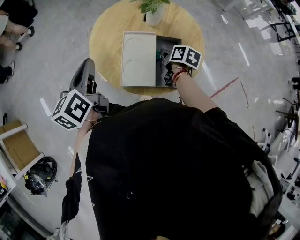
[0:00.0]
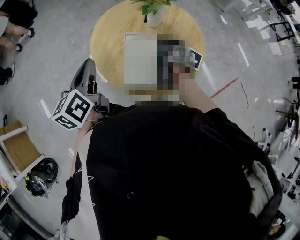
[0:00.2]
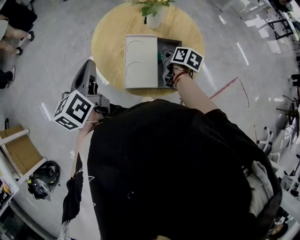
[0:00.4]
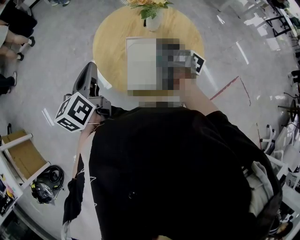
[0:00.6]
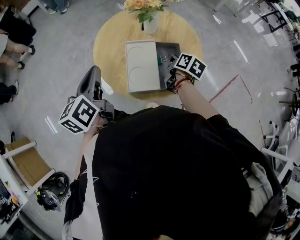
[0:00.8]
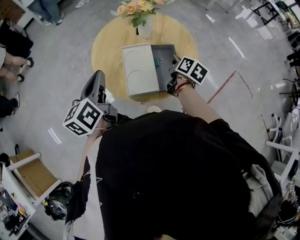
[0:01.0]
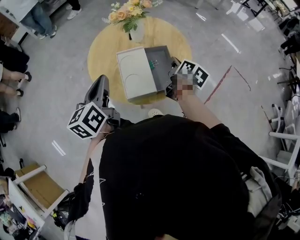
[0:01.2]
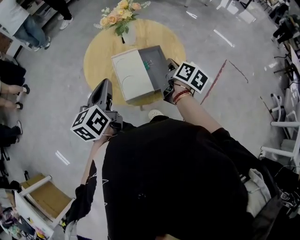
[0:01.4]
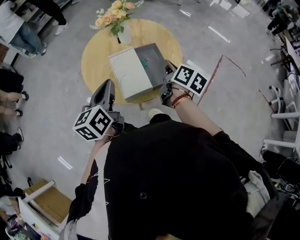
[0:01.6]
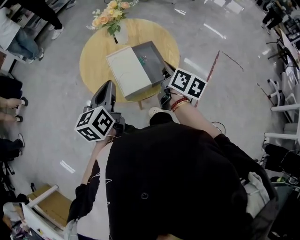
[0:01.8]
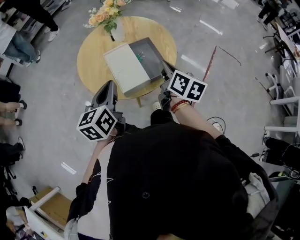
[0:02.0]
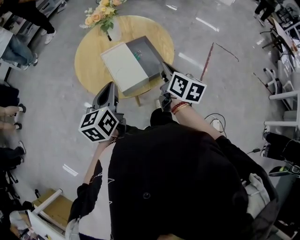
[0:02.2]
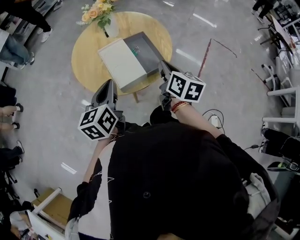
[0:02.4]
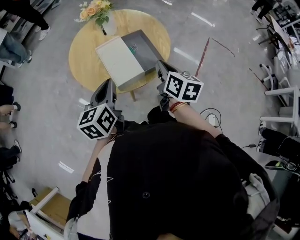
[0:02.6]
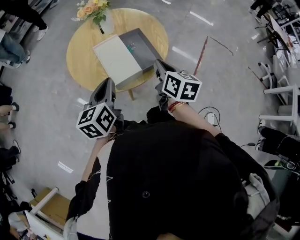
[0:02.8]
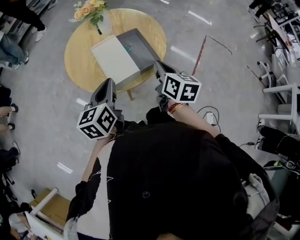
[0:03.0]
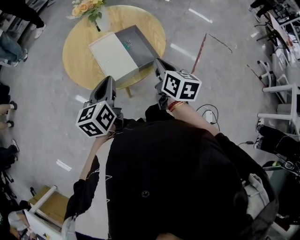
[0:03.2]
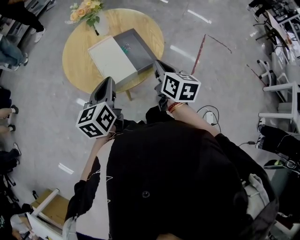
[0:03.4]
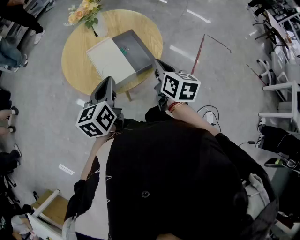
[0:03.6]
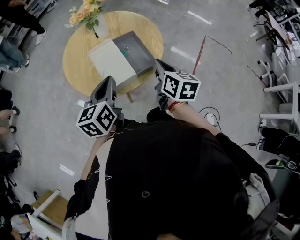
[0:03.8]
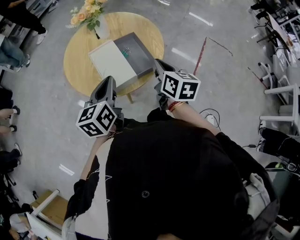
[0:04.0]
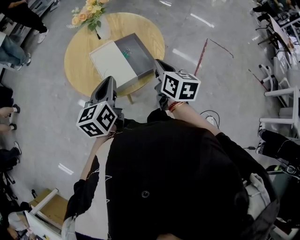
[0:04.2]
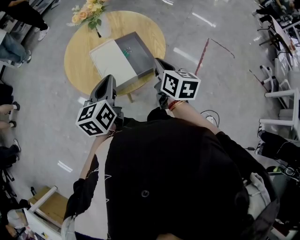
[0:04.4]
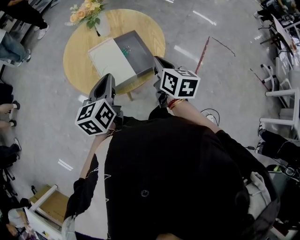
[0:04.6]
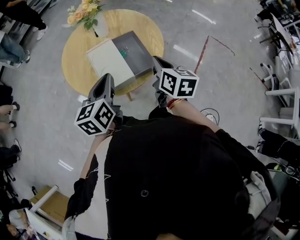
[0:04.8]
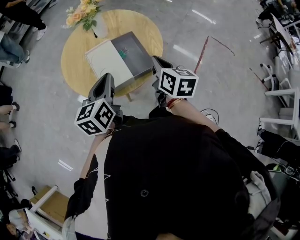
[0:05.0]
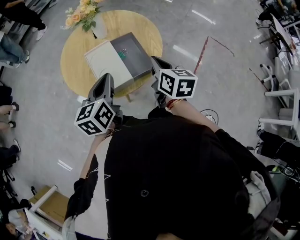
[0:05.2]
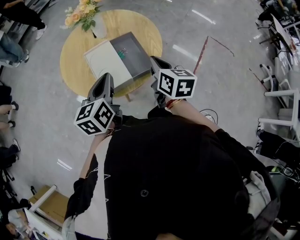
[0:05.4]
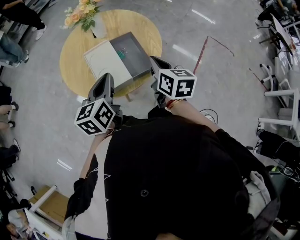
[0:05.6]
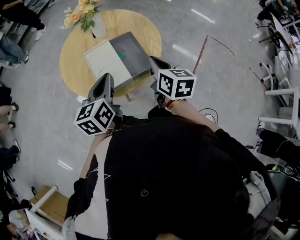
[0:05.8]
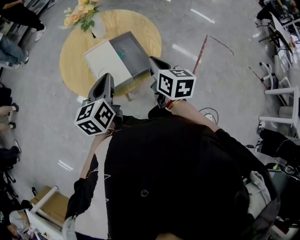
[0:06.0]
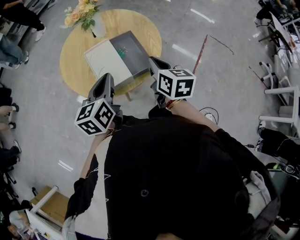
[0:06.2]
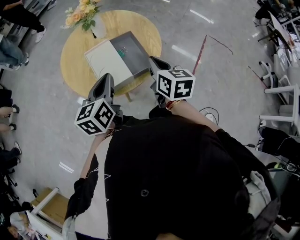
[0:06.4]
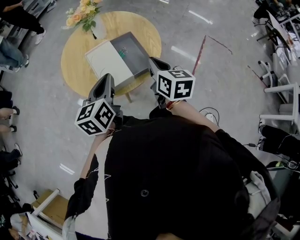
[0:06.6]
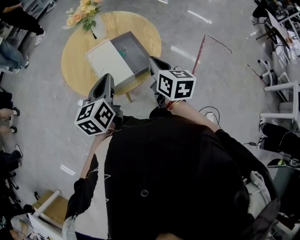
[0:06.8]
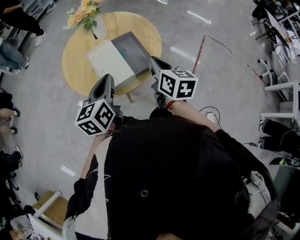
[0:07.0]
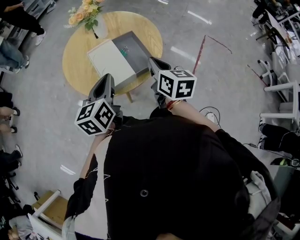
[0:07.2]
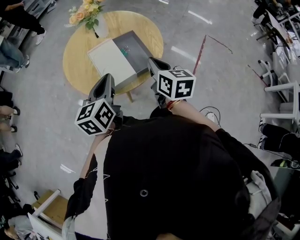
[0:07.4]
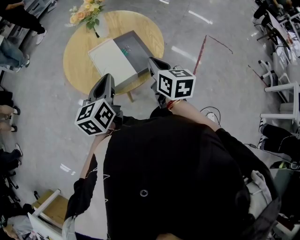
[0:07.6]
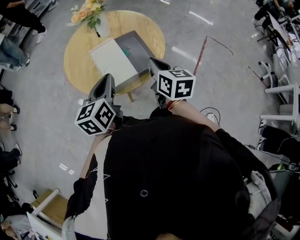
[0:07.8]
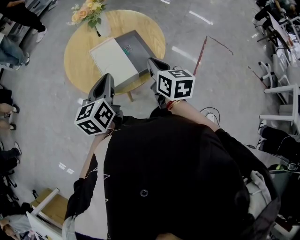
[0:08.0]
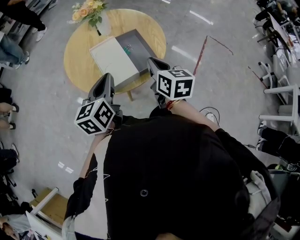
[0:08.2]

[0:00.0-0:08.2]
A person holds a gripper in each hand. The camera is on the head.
0:00.0 to 0:01.6: The right gripper is displaced upward by some 15 cm, and turns by roughly 40 degrees; the left gripper changes place by about 10 cm, and turns by approximately 30 degrees.
0:01.6 to 0:03.2: The right gripper goes approximately 10 cm backward, and swivels approximately 20 degrees. Meanwhile the left gripper goes some 5 cm to the right.
0:03.2 to 0:05.0: The left gripper moves approximately 5 cm.
0:05.0 to 0:08.2: The grippers move only a little.

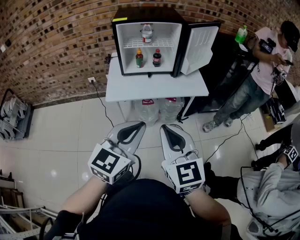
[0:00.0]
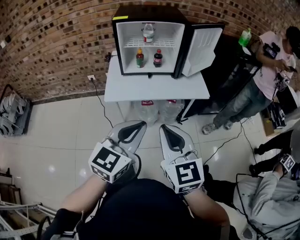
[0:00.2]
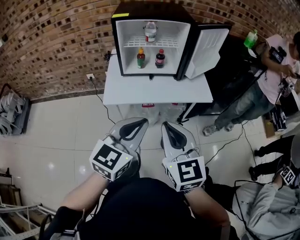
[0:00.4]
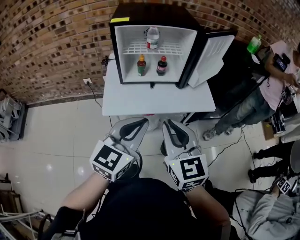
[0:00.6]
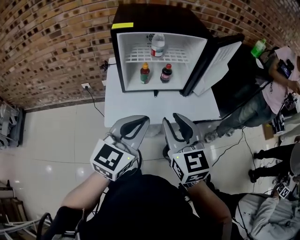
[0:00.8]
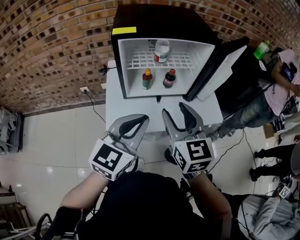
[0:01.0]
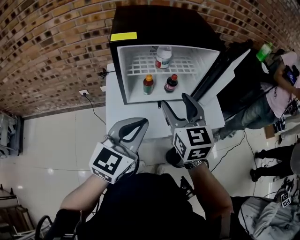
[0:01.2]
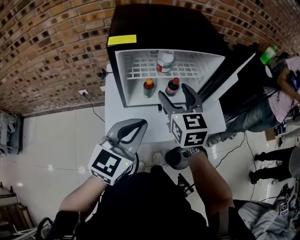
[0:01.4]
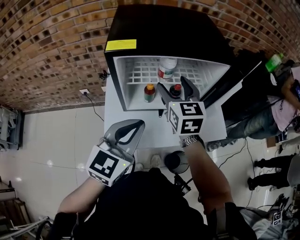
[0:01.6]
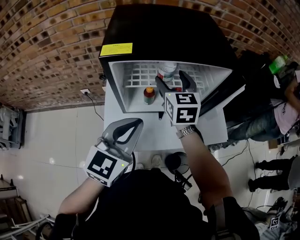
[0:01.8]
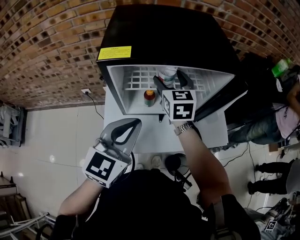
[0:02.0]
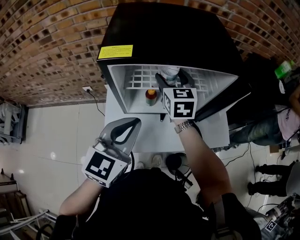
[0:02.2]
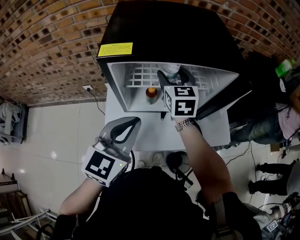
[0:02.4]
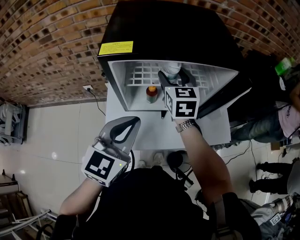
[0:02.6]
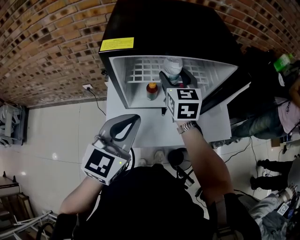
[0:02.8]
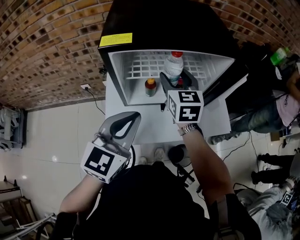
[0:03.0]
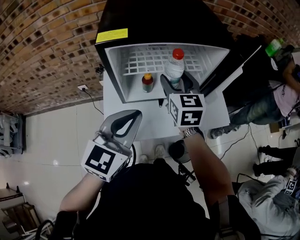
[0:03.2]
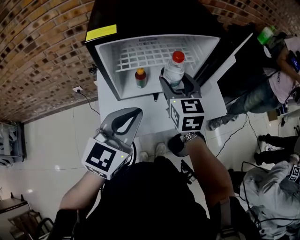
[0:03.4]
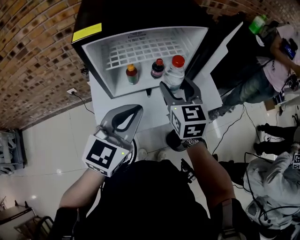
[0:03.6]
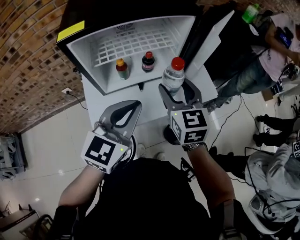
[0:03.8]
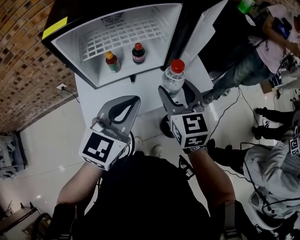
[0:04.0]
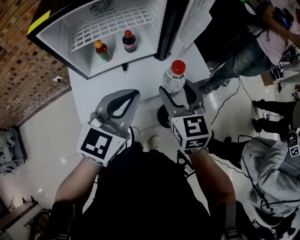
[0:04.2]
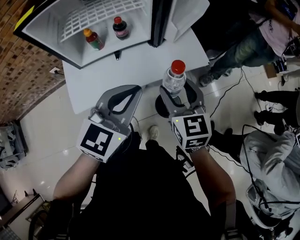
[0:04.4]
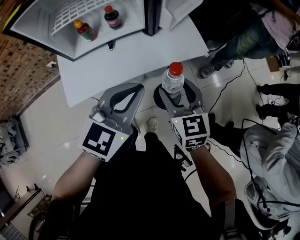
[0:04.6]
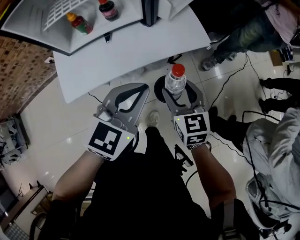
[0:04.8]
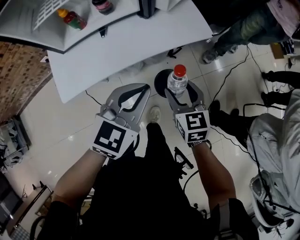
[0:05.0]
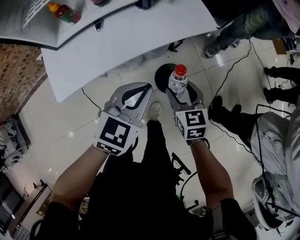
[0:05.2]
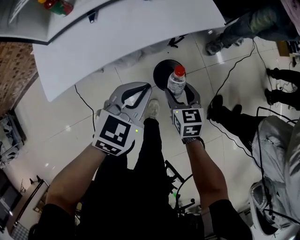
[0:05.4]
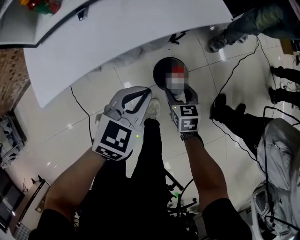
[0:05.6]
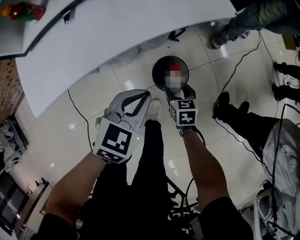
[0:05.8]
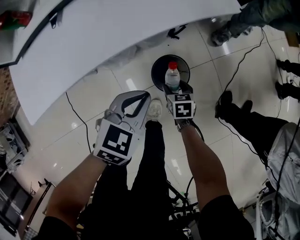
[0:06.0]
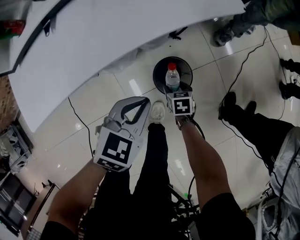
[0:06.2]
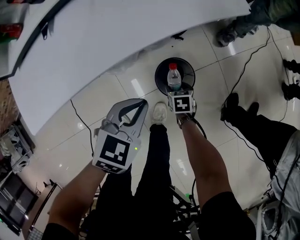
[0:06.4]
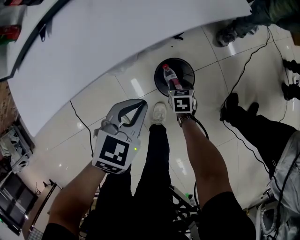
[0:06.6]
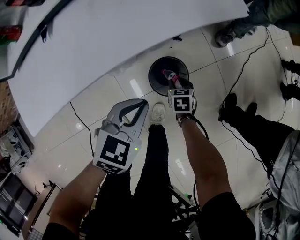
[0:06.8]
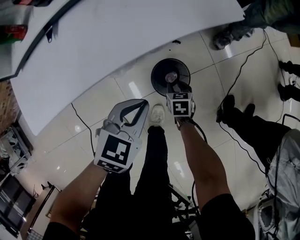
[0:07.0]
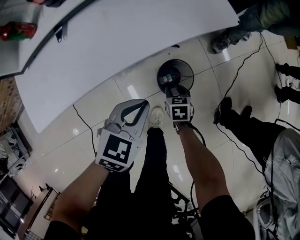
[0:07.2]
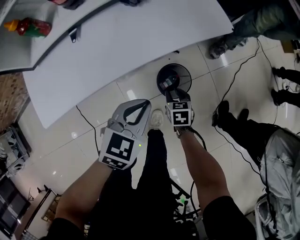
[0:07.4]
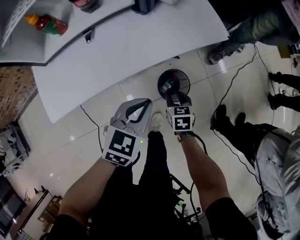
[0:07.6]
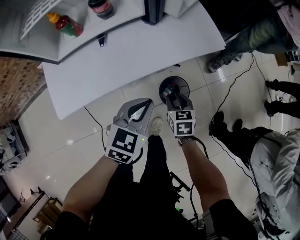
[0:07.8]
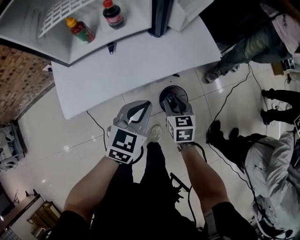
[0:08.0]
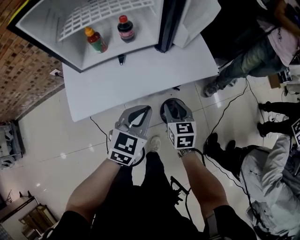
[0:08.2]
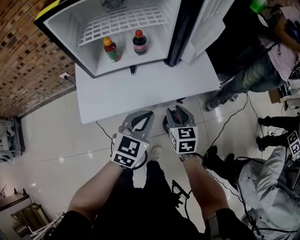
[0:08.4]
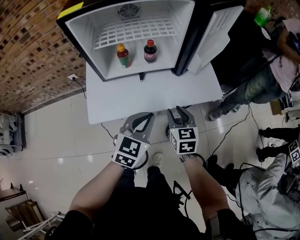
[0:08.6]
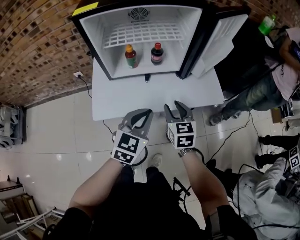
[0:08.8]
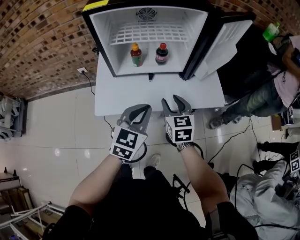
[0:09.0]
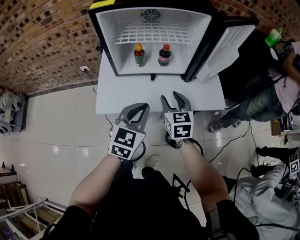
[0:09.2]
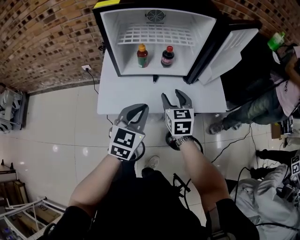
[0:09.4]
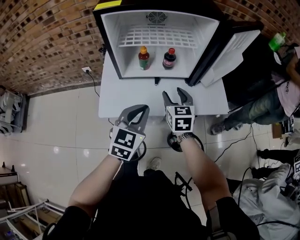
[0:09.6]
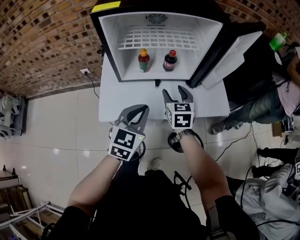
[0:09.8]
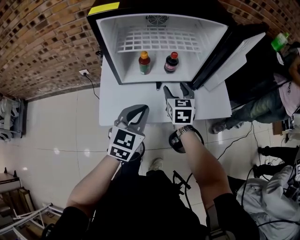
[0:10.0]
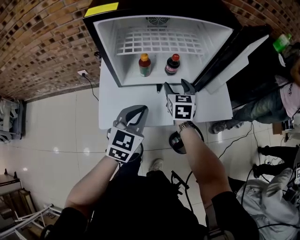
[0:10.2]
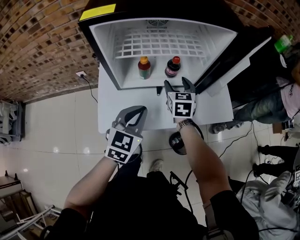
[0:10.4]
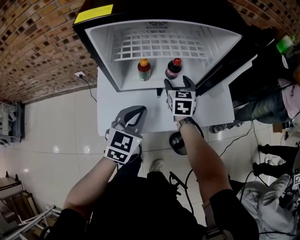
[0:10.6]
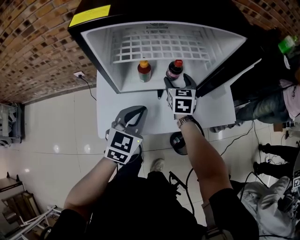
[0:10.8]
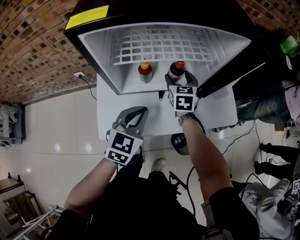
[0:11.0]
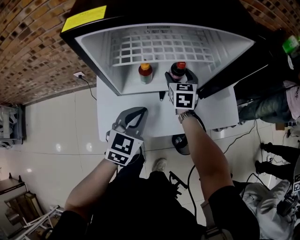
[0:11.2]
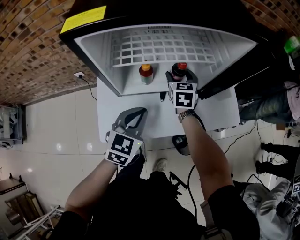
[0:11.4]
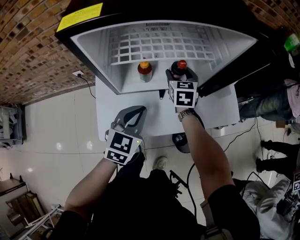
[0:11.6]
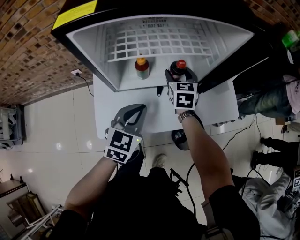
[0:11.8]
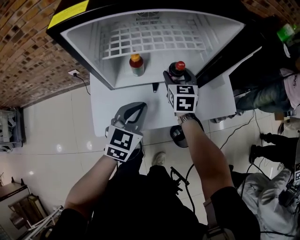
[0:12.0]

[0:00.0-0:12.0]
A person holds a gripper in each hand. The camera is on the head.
0:00.0 to 0:01.6: Both grippers are carried forward, about 50 cm. The right gripper opens.
0:03.0 to 0:04.4: The left gripper shifts approximately 20 cm to the right. Meanwhile the right gripper moves to the right and backward, about 35 cm.
0:04.4 to 0:06.0: The grippers both shift downward by some 40 cm. The left gripper swivels approximately 30 degrees. Meanwhile the right gripper angles its fingers downward, by roughly 40 degrees.
0:06.0 to 0:07.6: The two grippers go approximately 10 cm upward. The right gripper closes its fingers.
0:07.6 to 0:09.0: The right gripper travels upward and to the left by roughly 35 cm, and turns by about 40 degrees. The left gripper moves upward and to the left, roughly 25 cm, and swivels about 30 degrees.
0:09.0 to 0:10.4: The right gripper shifts about 20 cm forward. The left gripper travels forward and to the left by roughly 10 cm.

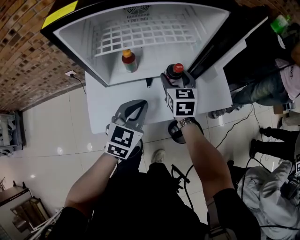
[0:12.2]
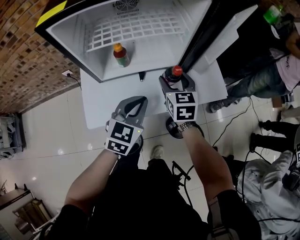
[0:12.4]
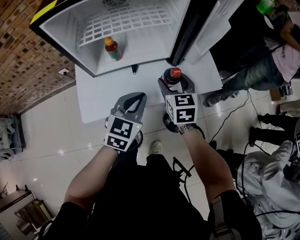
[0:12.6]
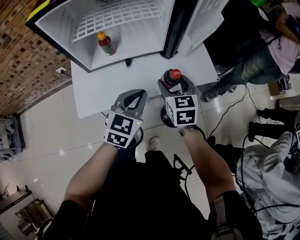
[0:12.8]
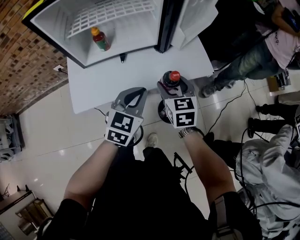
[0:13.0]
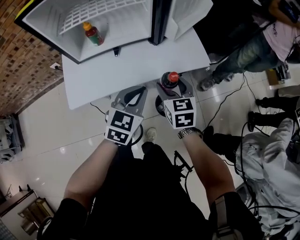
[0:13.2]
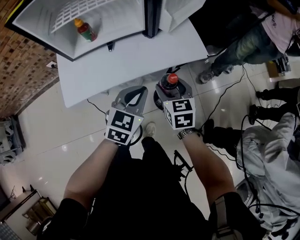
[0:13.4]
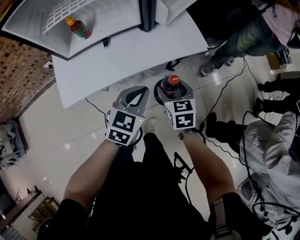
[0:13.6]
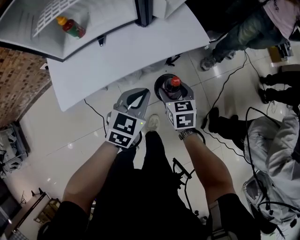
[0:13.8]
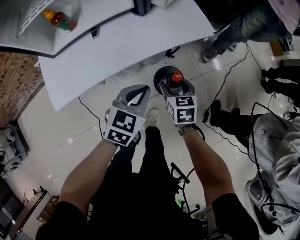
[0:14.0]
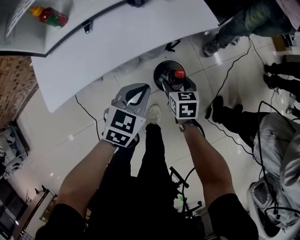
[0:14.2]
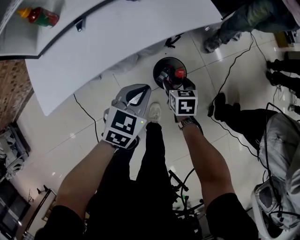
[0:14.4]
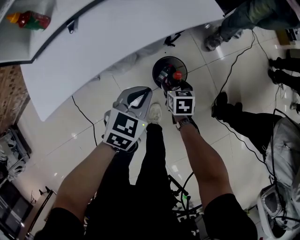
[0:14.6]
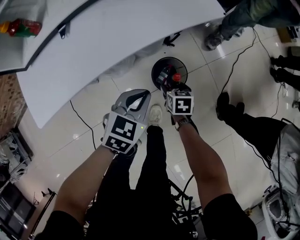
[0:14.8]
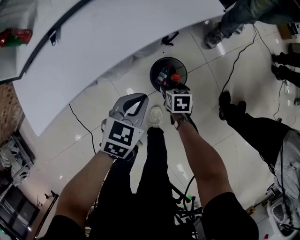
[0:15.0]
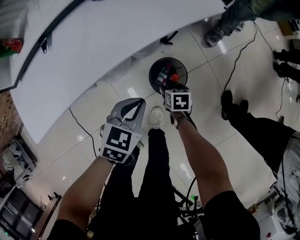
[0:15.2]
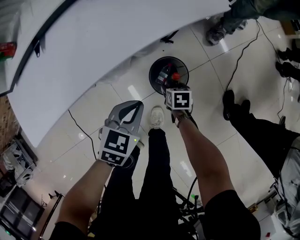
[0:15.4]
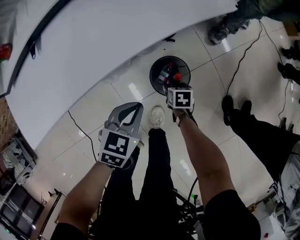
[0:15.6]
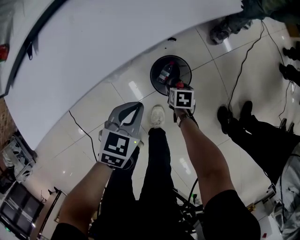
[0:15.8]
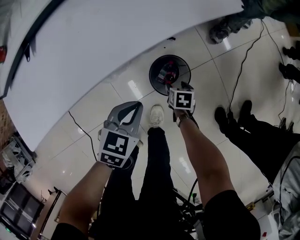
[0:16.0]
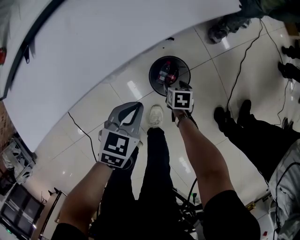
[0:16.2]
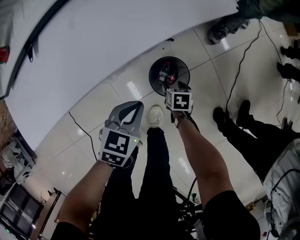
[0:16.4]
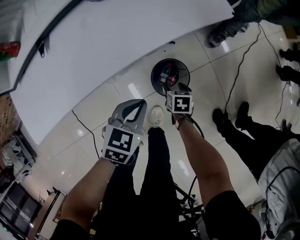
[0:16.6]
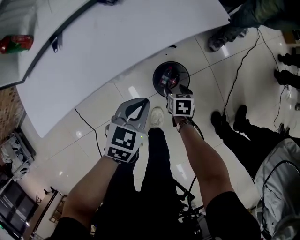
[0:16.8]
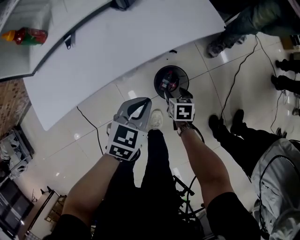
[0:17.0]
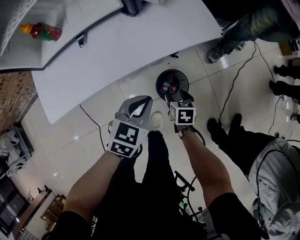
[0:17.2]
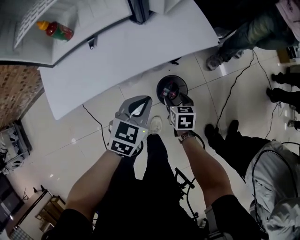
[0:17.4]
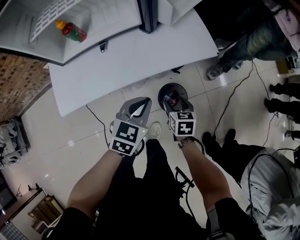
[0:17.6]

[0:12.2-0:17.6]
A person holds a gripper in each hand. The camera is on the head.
0:12.2 to 0:13.6: The left gripper goes roughly 20 cm to the right and backward, while the right gripper is displaced backward, to the right and downward by roughly 30 cm.
0:13.6 to 0:15.0: The left gripper travels downward by some 20 cm. The right gripper goes some 35 cm downward, and swivels roughly 30 degrees.
0:15.0 to 0:16.2: The two grippers go some 10 cm downward.
0:16.2 to 0:17.6: The grippers both shift upward by approximately 25 cm. The right gripper rotates some 30 degrees.
